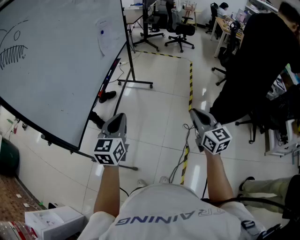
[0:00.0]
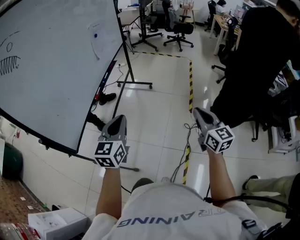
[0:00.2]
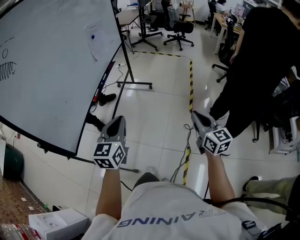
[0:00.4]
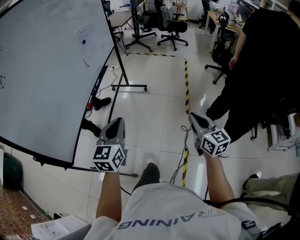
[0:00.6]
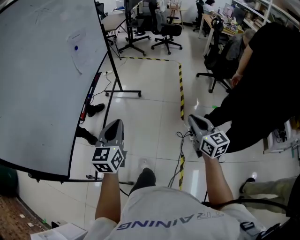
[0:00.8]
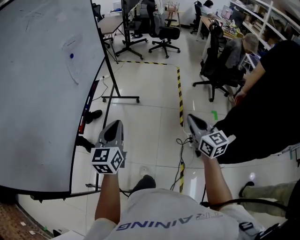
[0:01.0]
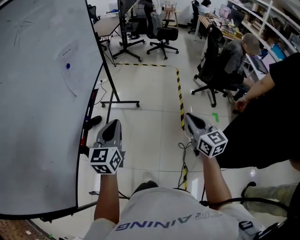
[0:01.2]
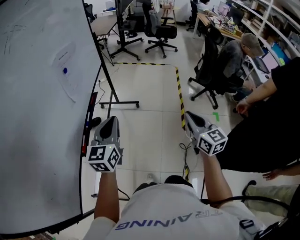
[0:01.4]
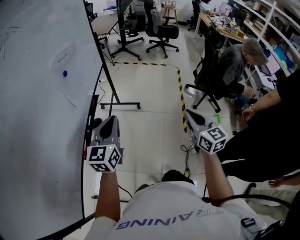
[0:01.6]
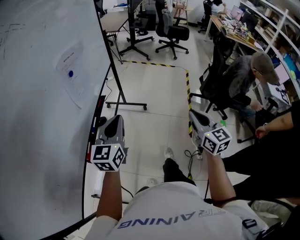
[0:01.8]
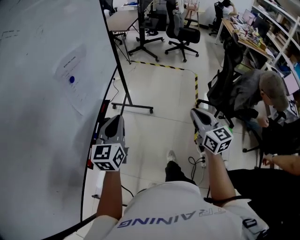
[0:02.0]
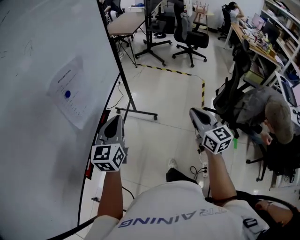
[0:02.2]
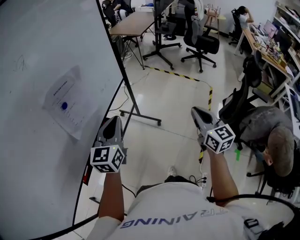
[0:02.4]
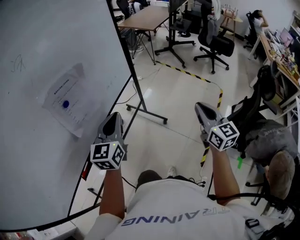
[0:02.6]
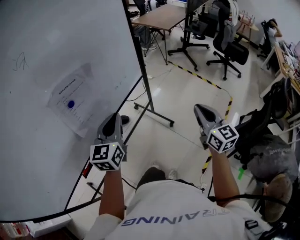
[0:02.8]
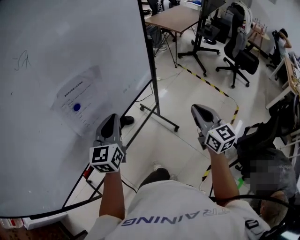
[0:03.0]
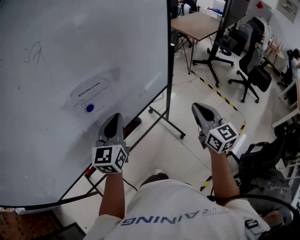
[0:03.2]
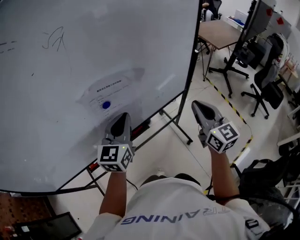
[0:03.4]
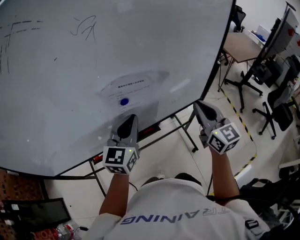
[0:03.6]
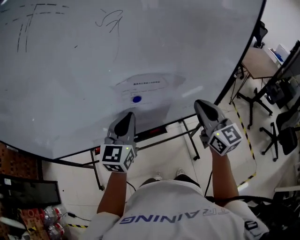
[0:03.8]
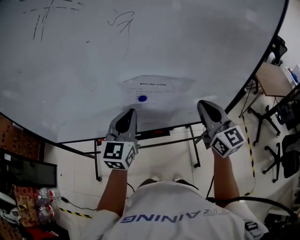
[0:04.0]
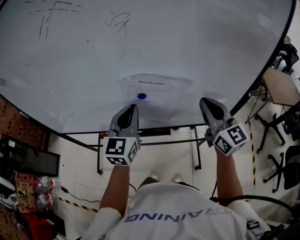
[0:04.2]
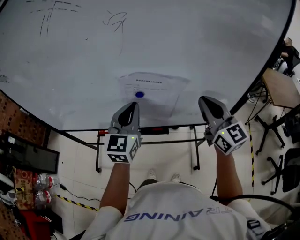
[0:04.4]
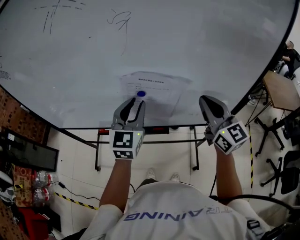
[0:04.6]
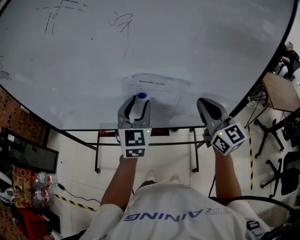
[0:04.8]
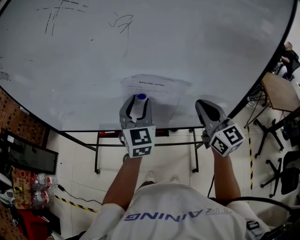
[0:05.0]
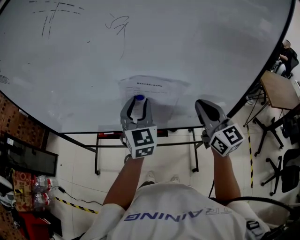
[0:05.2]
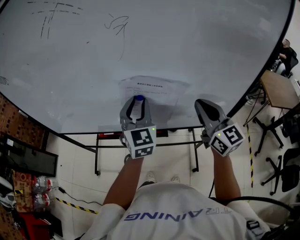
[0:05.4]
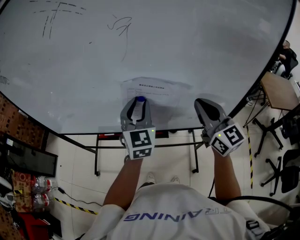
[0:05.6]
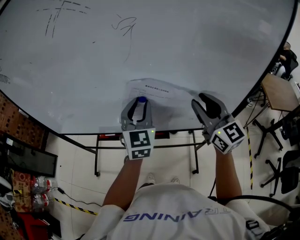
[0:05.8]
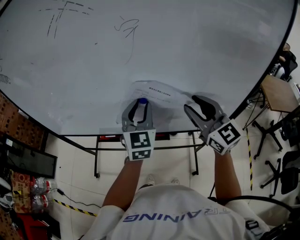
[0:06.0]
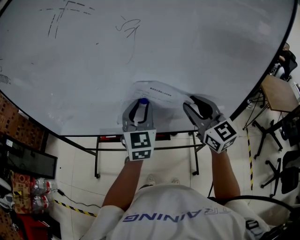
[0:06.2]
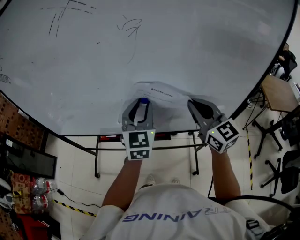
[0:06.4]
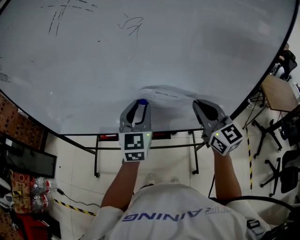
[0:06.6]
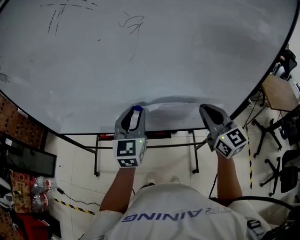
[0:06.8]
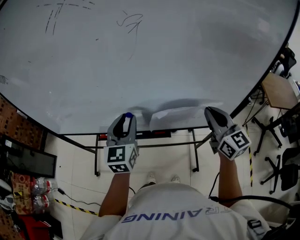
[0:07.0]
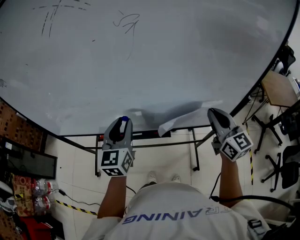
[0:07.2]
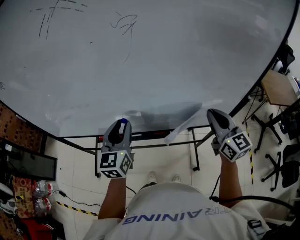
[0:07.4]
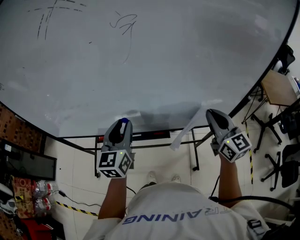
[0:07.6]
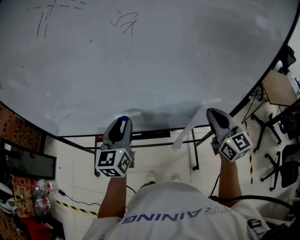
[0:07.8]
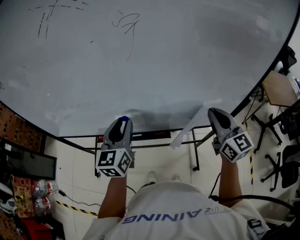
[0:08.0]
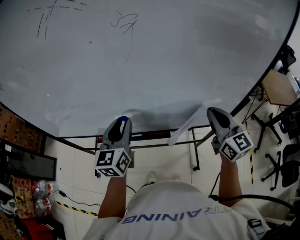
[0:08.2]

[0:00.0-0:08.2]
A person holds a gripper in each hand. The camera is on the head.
0:00.0 to 0:01.6: Both grippers move forward, approximately 35 cm.
0:01.6 to 0:03.2: The left gripper moves approximately 30 cm, and swivels approximately 40 degrees, while the right gripper ends up approximately 50 cm from where it was, and swivels approximately 40 degrees.
0:03.2 to 0:05.0: The right gripper ends up some 25 cm from where it was, and rotates approximately 50 degrees, while the left gripper shifts by roughly 10 cm, swivels roughly 50 degrees, and opens its fingers.
0:05.0 to 0:06.6: The right gripper opens, then closes again.
0:06.6 to 0:08.2: The left gripper shifts about 5 cm to the left. The right gripper moves to the right, approximately 5 cm.

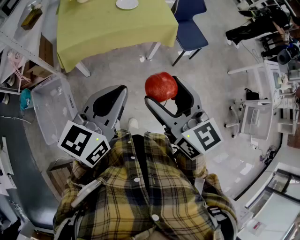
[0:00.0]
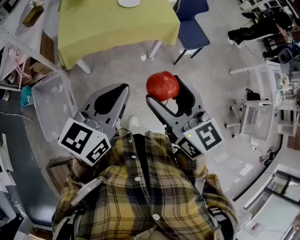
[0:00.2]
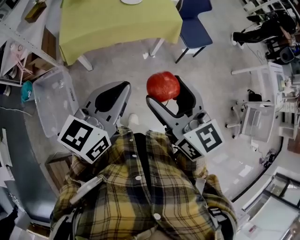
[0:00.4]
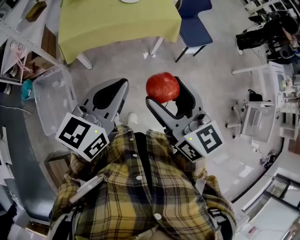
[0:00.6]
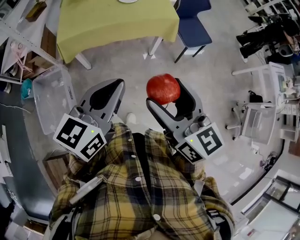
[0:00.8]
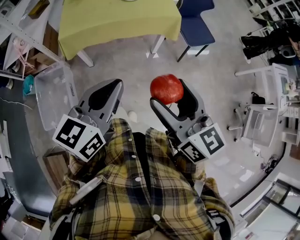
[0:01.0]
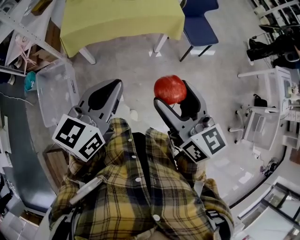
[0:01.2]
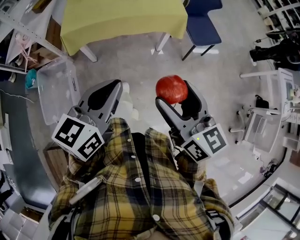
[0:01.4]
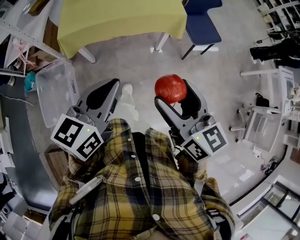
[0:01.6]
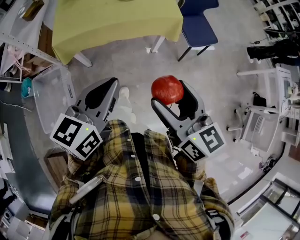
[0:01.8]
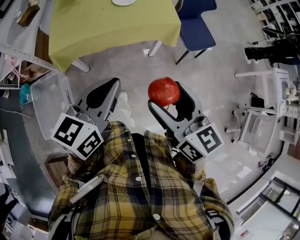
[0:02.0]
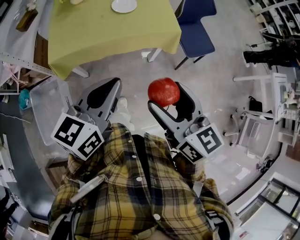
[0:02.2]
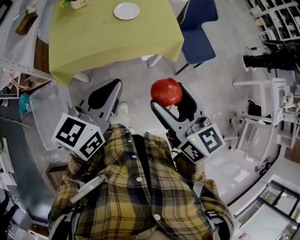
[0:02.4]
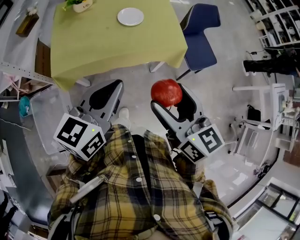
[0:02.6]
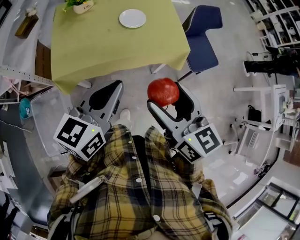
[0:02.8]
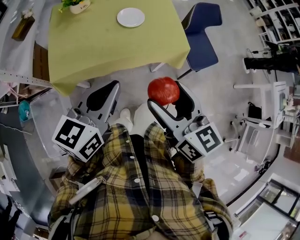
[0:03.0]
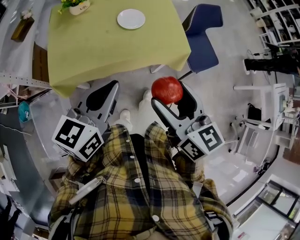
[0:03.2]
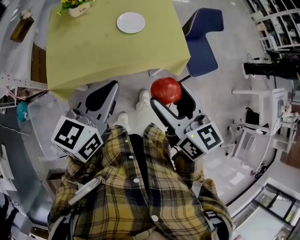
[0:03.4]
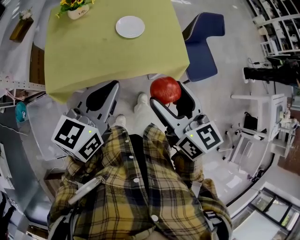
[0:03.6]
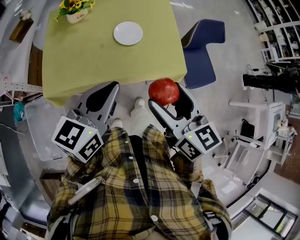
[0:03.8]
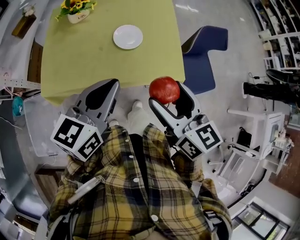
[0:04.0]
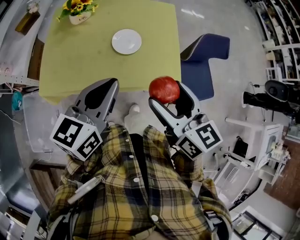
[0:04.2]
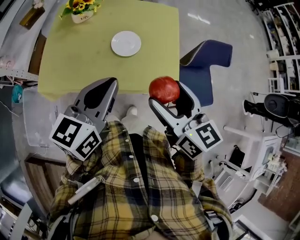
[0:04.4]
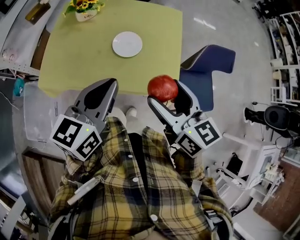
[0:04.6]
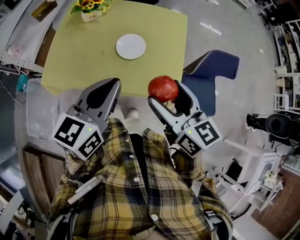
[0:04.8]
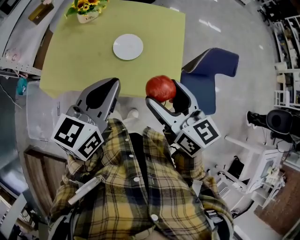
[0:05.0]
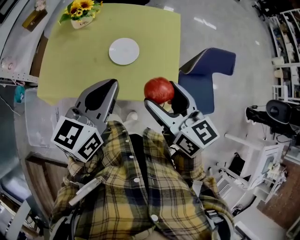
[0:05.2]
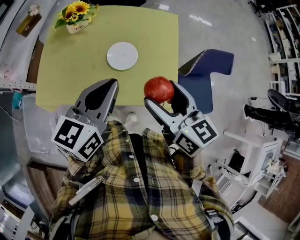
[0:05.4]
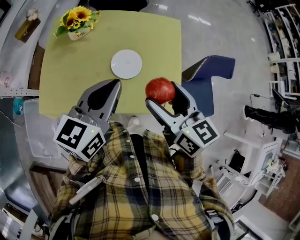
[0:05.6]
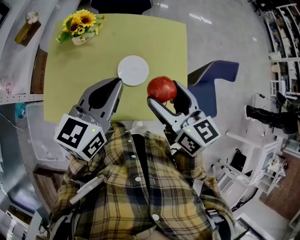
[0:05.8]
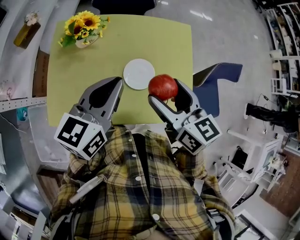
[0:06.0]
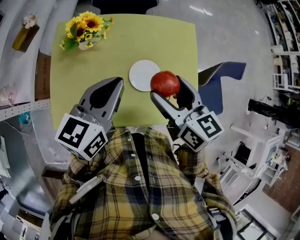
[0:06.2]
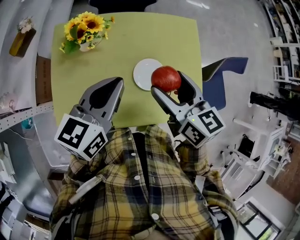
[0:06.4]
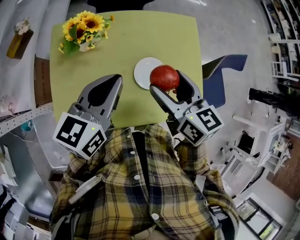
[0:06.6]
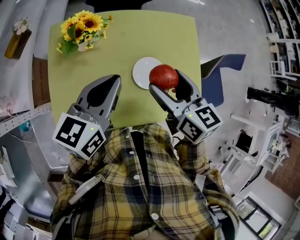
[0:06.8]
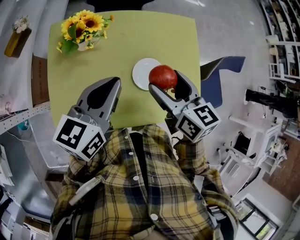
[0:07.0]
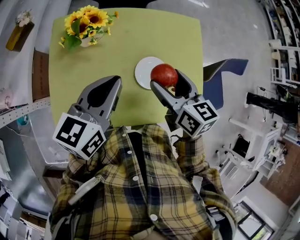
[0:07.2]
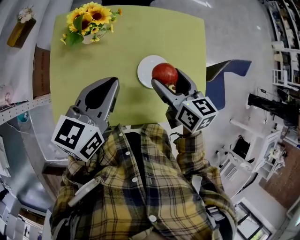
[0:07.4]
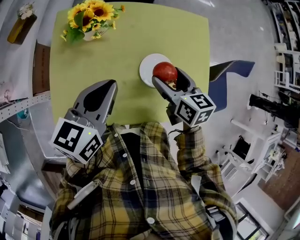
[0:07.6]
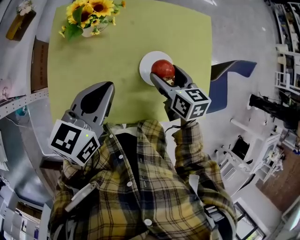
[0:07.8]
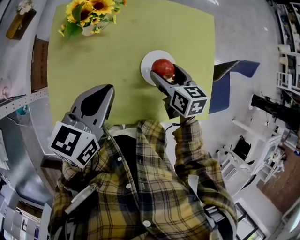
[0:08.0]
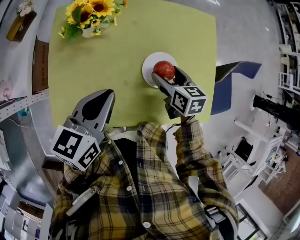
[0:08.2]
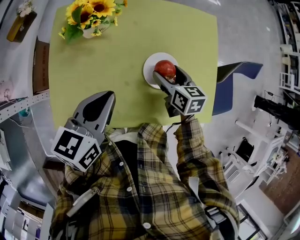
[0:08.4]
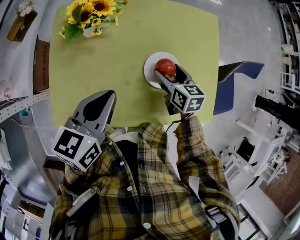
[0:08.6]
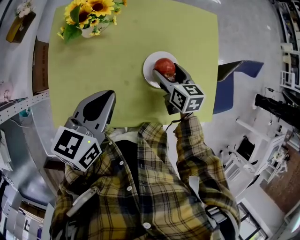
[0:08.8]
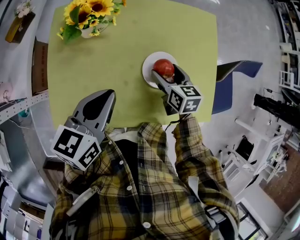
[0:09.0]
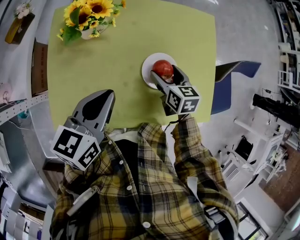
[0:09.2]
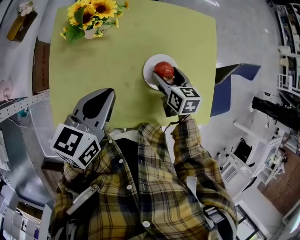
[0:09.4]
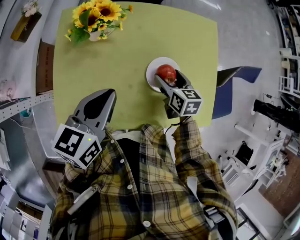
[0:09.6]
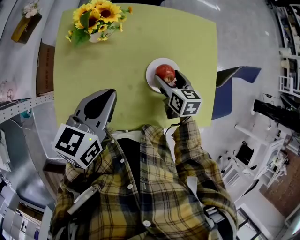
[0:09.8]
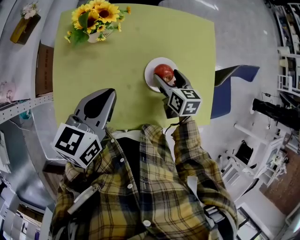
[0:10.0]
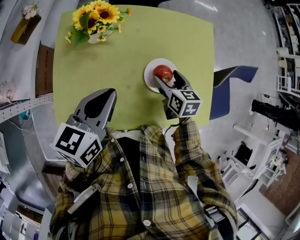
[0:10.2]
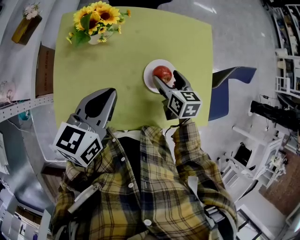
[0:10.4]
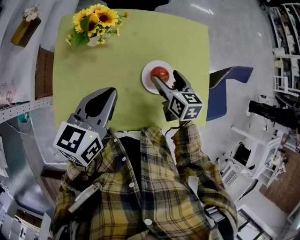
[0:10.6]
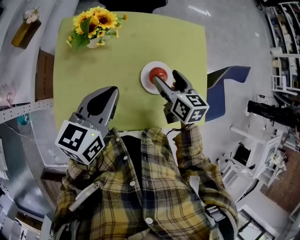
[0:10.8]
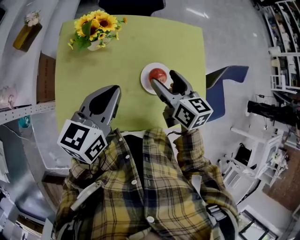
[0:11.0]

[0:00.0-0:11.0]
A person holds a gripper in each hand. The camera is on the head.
0:00.0 to 0:01.6: The right gripper shifts approximately 10 cm to the right, while the left gripper changes place by some 5 cm.
0:01.6 to 0:03.2: Both grippers move forward, some 25 cm.
0:03.2 to 0:04.8: The two grippers go roughly 25 cm forward and to the right. The right gripper turns by some 20 degrees, while the left gripper turns by approximately 20 degrees.
0:04.8 to 0:06.2: Both grippers travel together forward and to the left, some 25 cm.
0:06.2 to 0:07.8: The right gripper shifts about 15 cm downward, while the left gripper heads downward and to the left, covering about 10 cm.
0:07.8 to 0:09.4: The right gripper goes about 5 cm downward.
0:09.4 to 0:11.0: The right gripper travels upward by roughly 15 cm. The left gripper travels upward by roughly 5 cm.

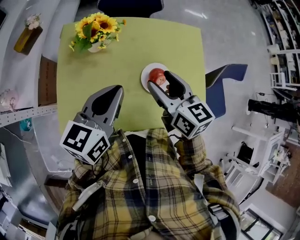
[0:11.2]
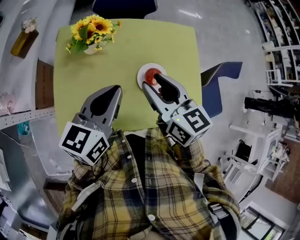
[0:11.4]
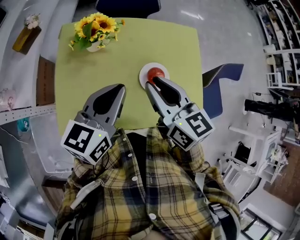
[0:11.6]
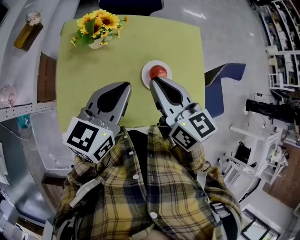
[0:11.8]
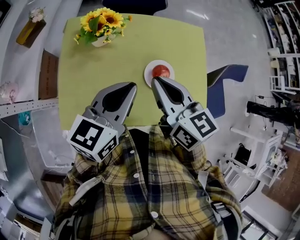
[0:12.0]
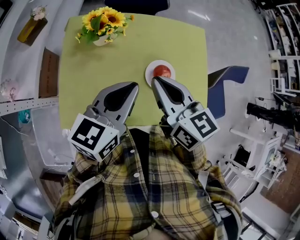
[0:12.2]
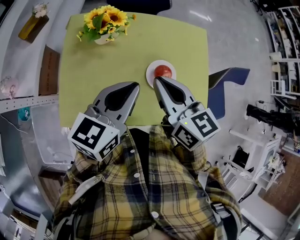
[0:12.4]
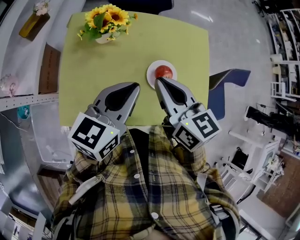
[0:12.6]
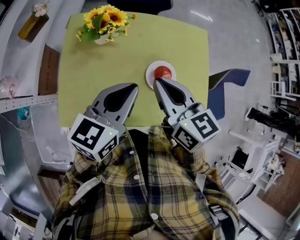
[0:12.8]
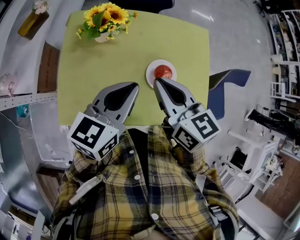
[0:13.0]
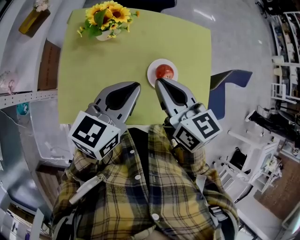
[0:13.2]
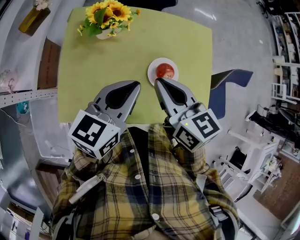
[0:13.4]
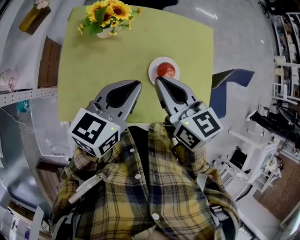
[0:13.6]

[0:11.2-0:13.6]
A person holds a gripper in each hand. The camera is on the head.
0:11.2 to 0:12.4: The right gripper changes place by about 5 cm, and closes.
0:12.4 to 0:13.6: The grippers move only a little.

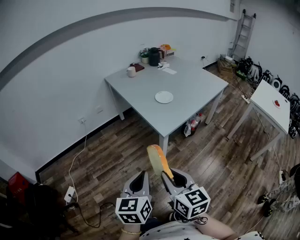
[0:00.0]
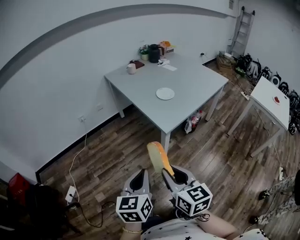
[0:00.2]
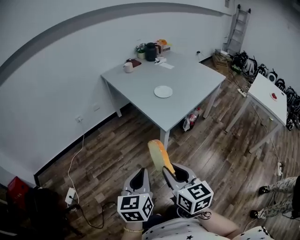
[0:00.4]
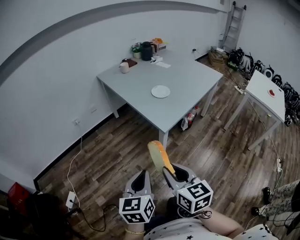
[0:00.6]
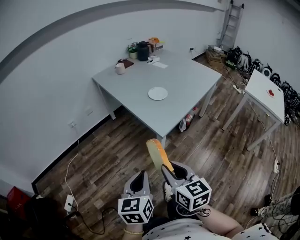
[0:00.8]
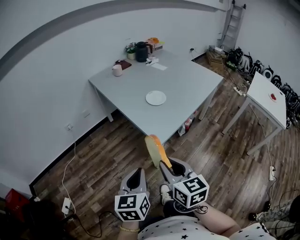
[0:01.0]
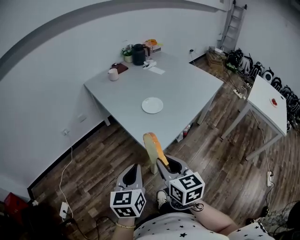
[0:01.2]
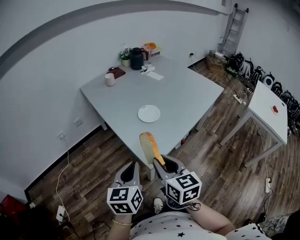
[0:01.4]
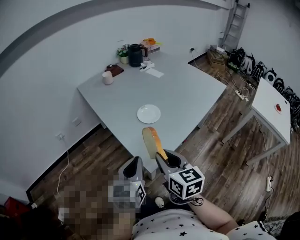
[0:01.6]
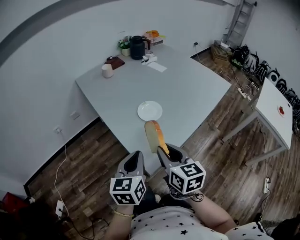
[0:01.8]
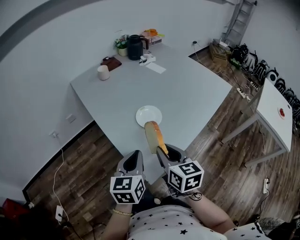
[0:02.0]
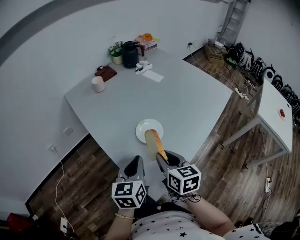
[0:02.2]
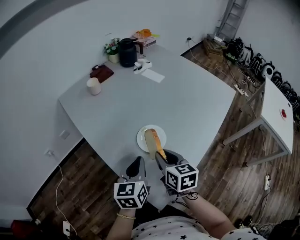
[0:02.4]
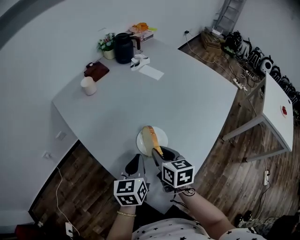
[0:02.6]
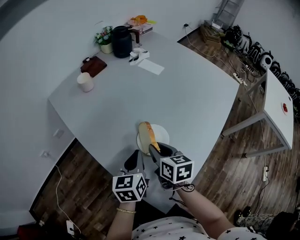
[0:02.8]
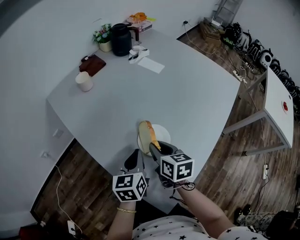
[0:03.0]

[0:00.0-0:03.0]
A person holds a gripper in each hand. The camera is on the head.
0:00.0 to 0:01.6: The grippers both shift forward by about 30 cm.
0:01.6 to 0:03.0: The right gripper is displaced forward and downward by approximately 35 cm, and turns by roughly 20 degrees; the left gripper is displaced forward by roughly 30 cm.
